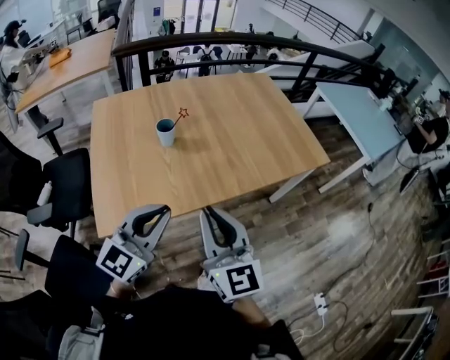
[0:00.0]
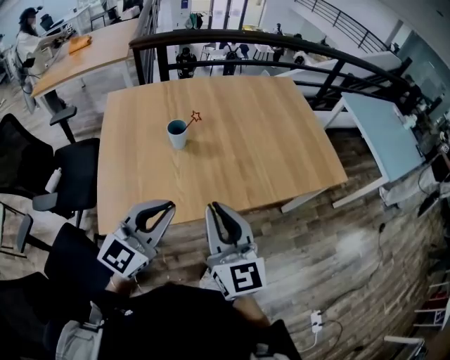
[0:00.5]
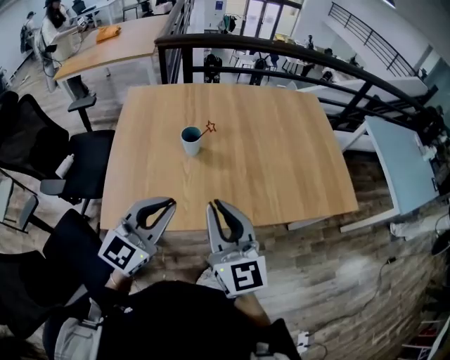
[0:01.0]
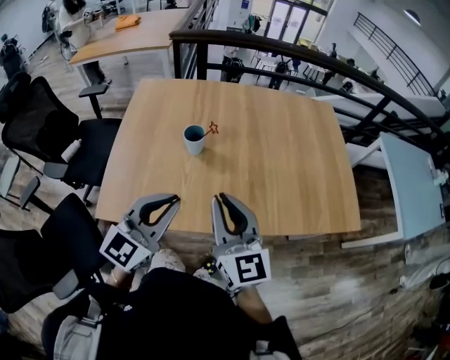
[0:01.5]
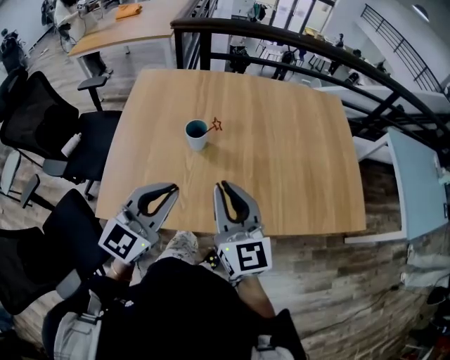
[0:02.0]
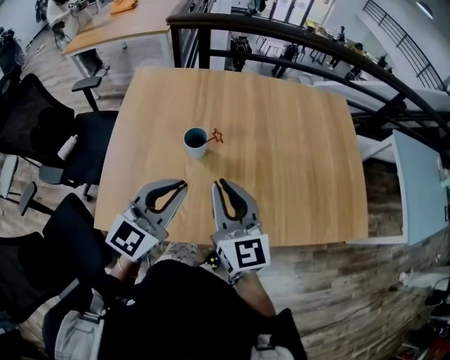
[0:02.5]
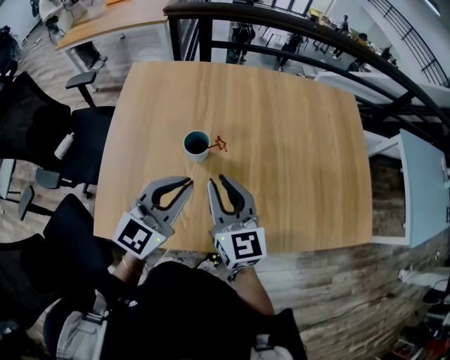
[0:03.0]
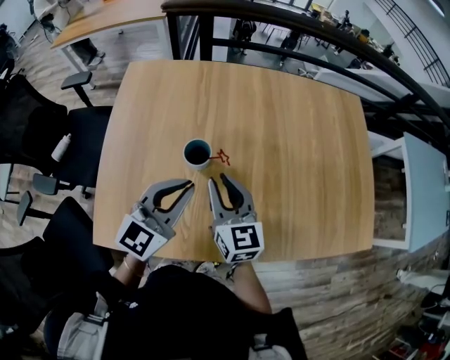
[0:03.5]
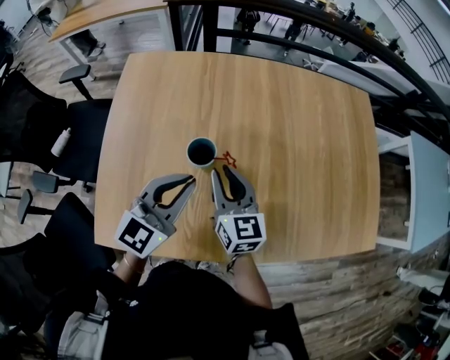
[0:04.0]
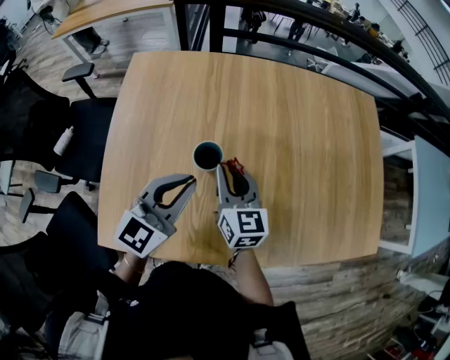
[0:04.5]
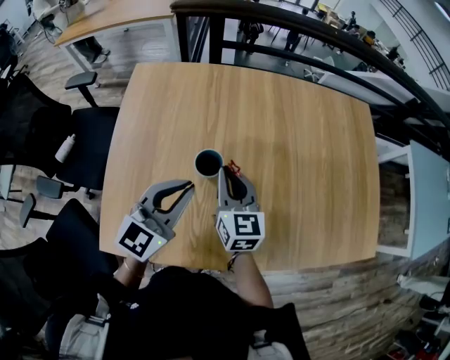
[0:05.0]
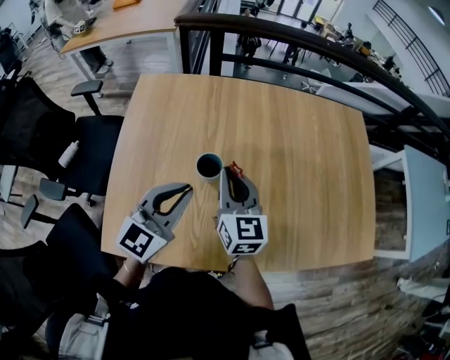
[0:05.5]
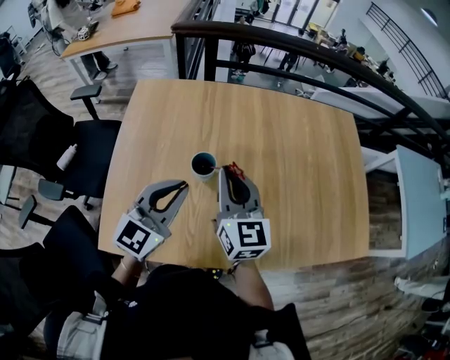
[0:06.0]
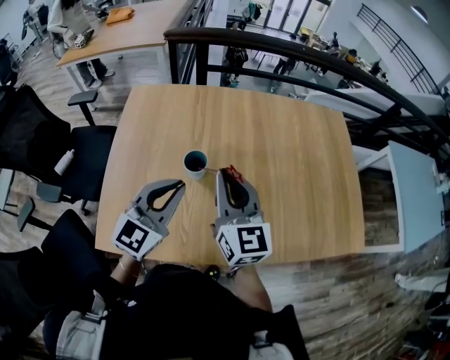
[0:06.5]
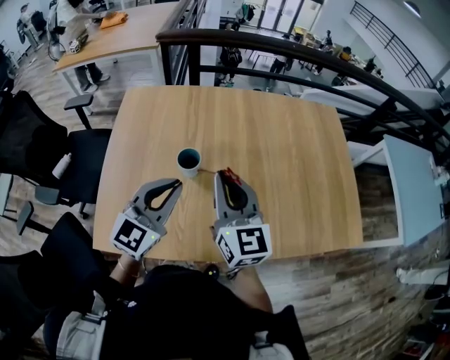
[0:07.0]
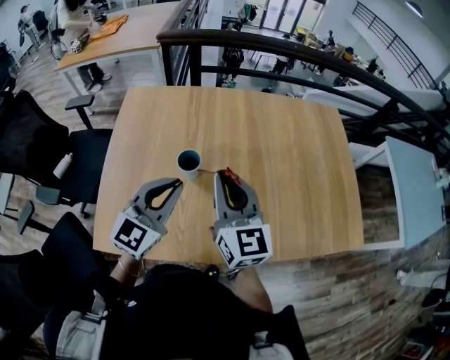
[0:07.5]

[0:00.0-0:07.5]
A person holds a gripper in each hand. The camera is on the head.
0:00.0 to 0:02.0: Both grippers move forward, roughly 20 cm. The left gripper turns by about 20 degrees. The right gripper changes its angle by roughly 20 degrees.
0:02.0 to 0:04.0: The left gripper shifts some 20 cm forward, while the right gripper moves forward, downward and to the left, some 25 cm.
0:04.0 to 0:05.5: The right gripper heads upward, covering some 5 cm.
0:05.5 to 0:07.5: The right gripper moves upward, backward and to the right, about 15 cm, while the left gripper ends up some 5 cm from where it was.

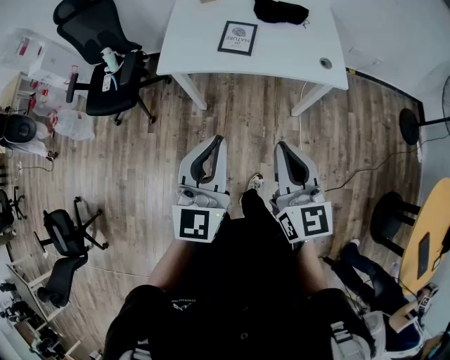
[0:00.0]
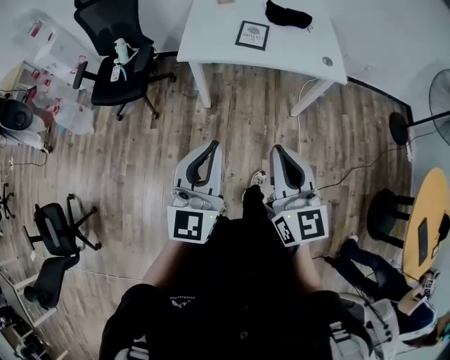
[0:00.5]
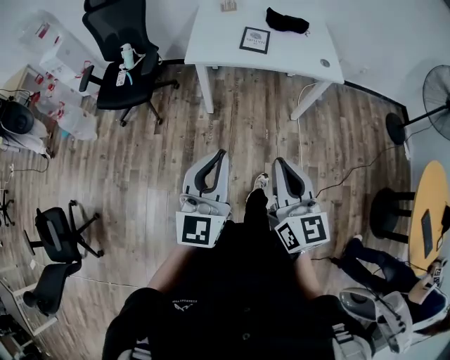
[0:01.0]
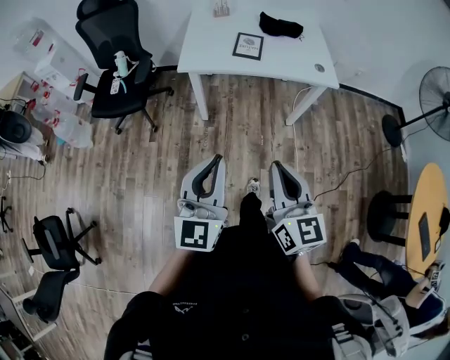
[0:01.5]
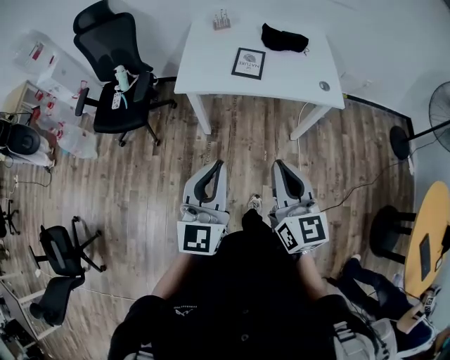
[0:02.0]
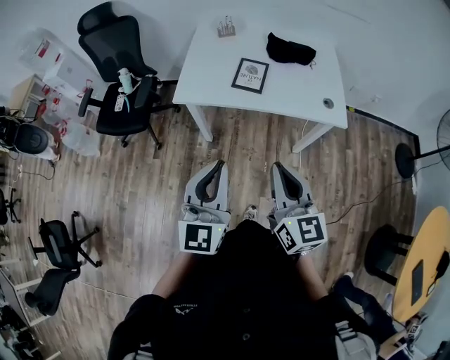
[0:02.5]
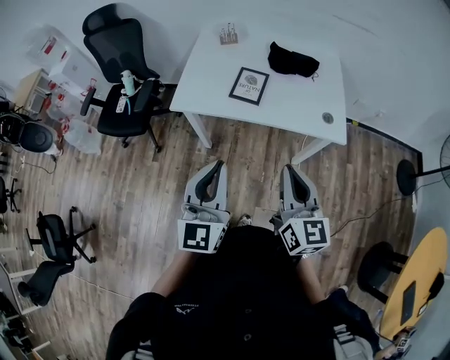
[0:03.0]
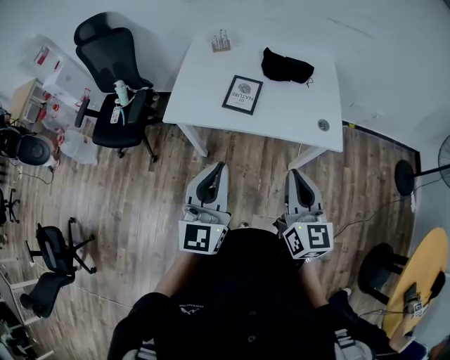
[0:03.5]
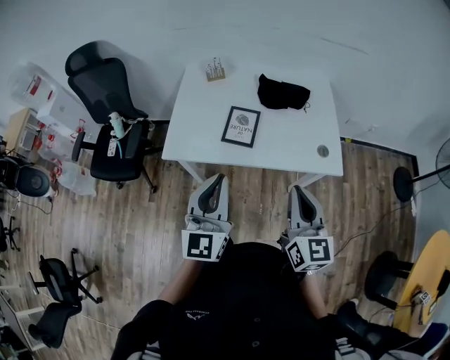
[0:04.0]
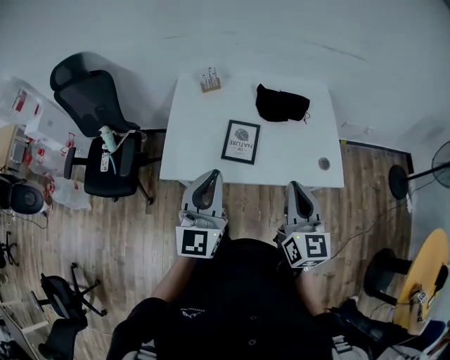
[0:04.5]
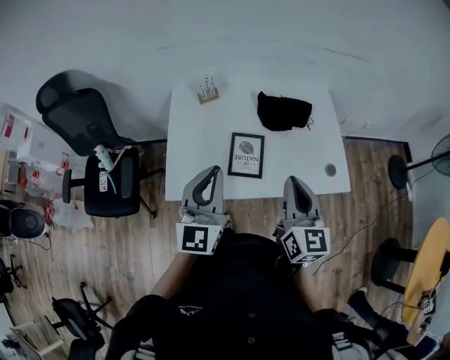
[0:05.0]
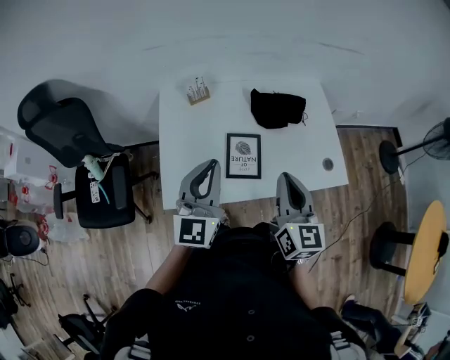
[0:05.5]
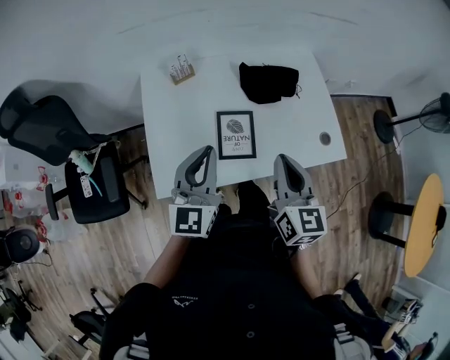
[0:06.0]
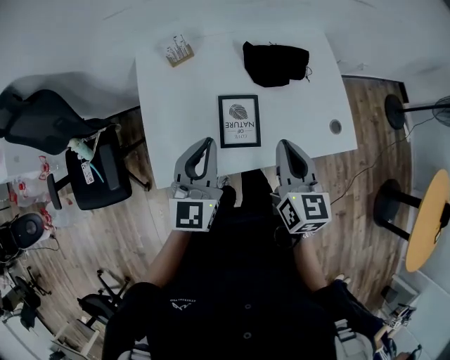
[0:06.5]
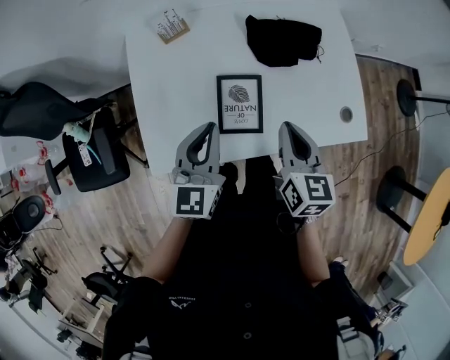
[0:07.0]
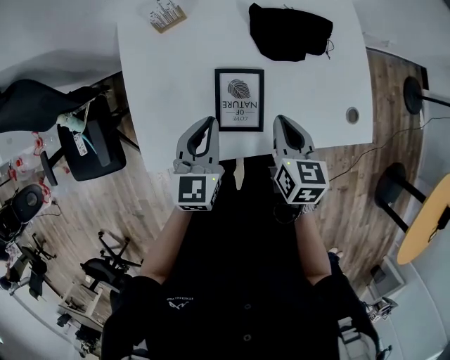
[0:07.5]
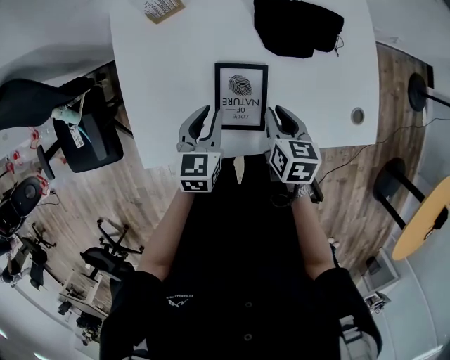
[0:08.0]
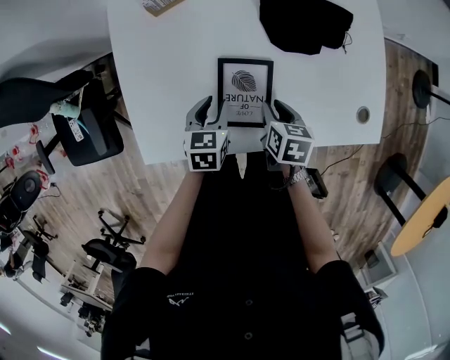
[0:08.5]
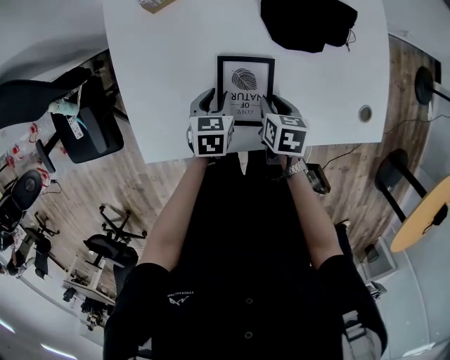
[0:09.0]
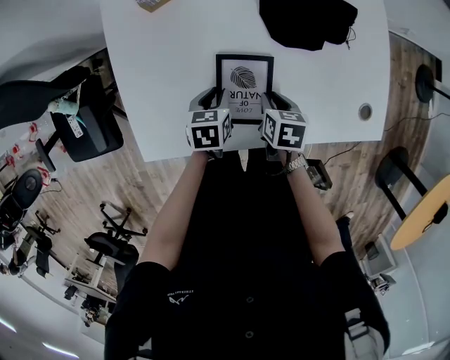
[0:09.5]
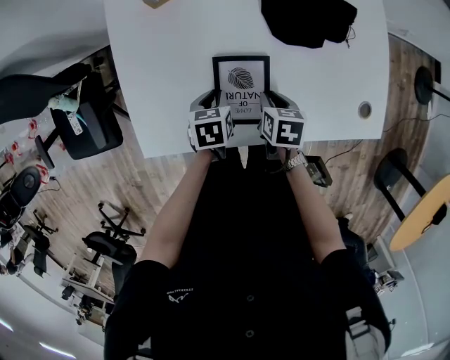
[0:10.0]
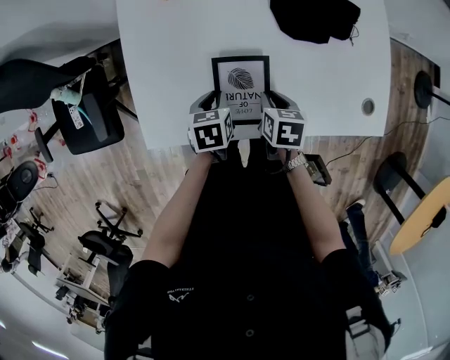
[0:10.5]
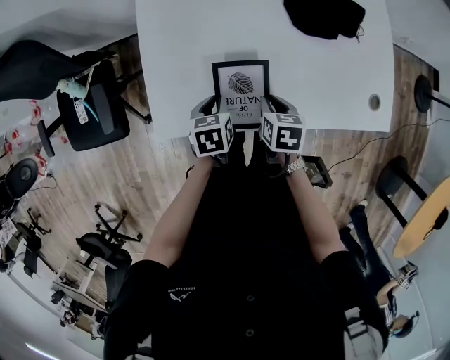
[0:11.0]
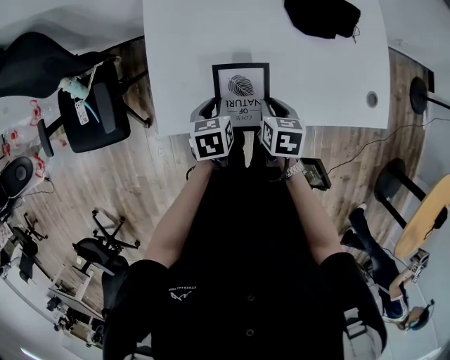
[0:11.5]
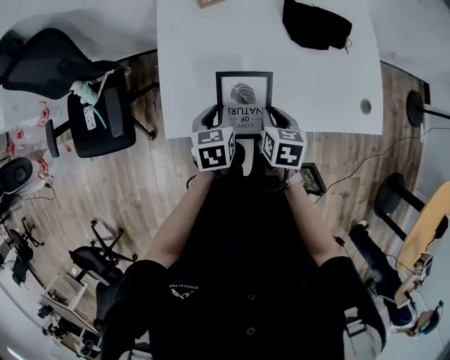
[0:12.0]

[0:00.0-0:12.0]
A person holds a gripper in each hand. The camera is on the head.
0:00.0 to 0:02.0: The grippers both shift to the left by approximately 10 cm. The right gripper goes backward and returns, approximately 25 cm each way. Meanwhile the left gripper moves approximately 25 cm backward and comes back.
0:02.0 to 0:04.0: The right gripper is displaced forward and to the right by some 30 cm, while the left gripper shifts approximately 25 cm forward.
0:04.0 to 0:06.0: The two grippers go roughly 30 cm forward and to the left.
0:06.0 to 0:08.0: The left gripper shifts roughly 25 cm downward, and tips its fingers downward by some 40 degrees. The right gripper travels downward and forward by some 30 cm, and tilts its fingers approximately 30 degrees downward.
0:08.0 to 0:10.0: Both grippers travel together downward, roughly 10 cm. The left gripper turns by some 30 degrees.
0:10.0 to 0:12.0: Both grippers travel together upward, backward and to the left, roughly 15 cm.

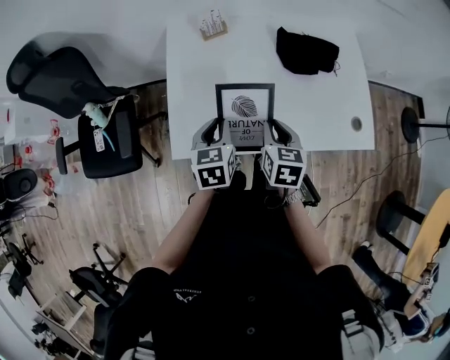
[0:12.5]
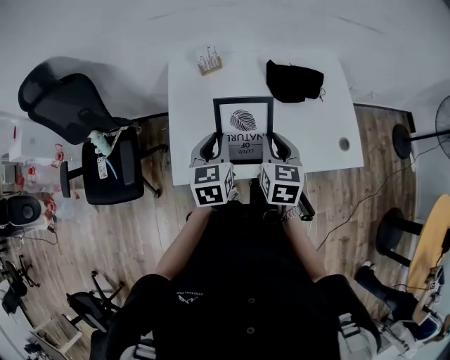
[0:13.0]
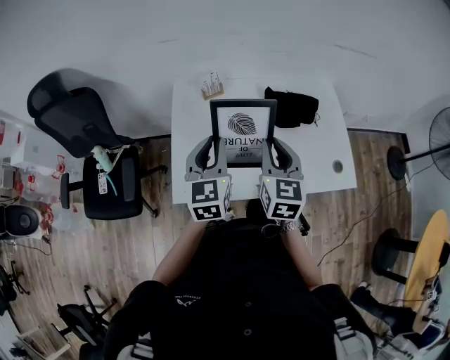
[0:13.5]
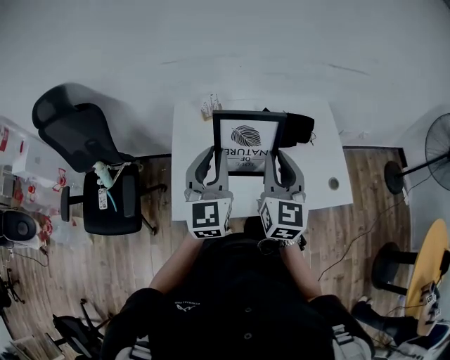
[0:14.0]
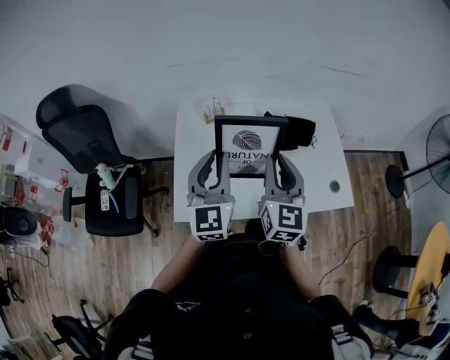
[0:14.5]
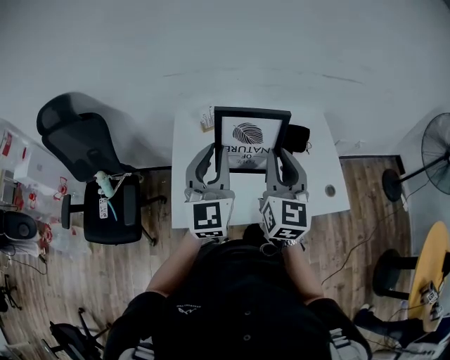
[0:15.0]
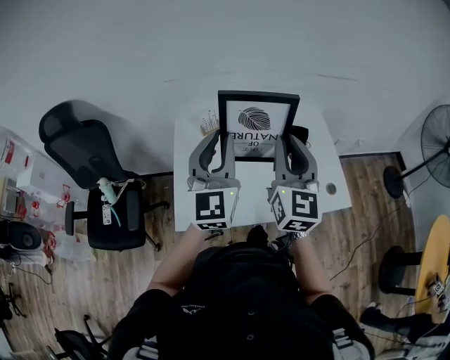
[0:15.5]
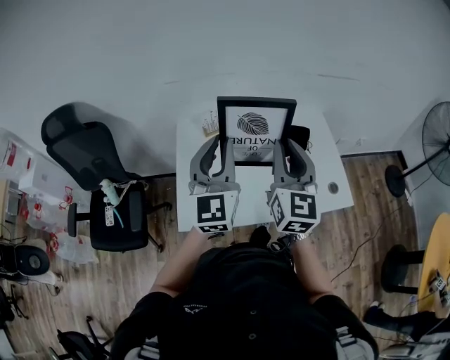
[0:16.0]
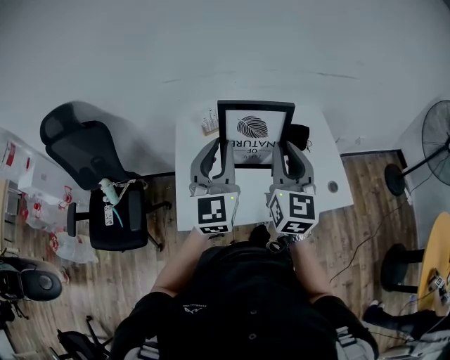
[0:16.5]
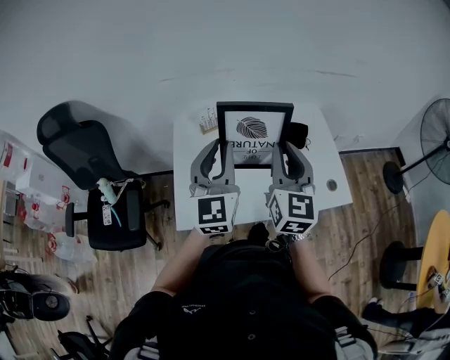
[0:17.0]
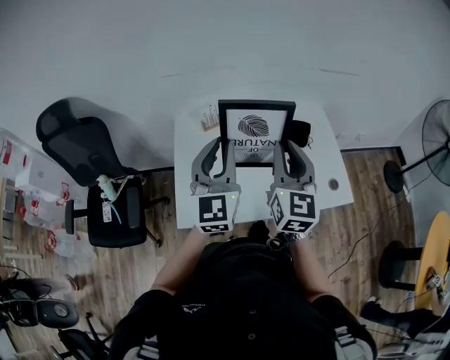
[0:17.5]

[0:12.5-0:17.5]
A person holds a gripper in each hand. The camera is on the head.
0:12.5 to 0:15.0: The two grippers go about 30 cm upward. The right gripper points its fingers roughly 40 degrees further upward. Meanwhile the left gripper points its fingers approximately 50 degrees further upward.
0:15.0 to 0:17.5: There are only small adjustments of the grippers.

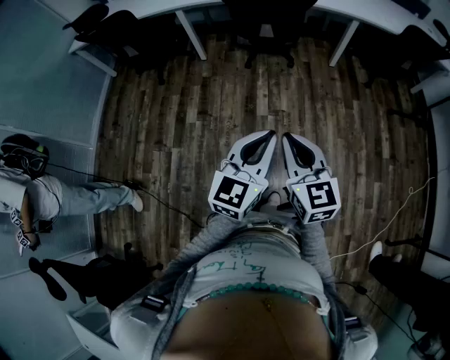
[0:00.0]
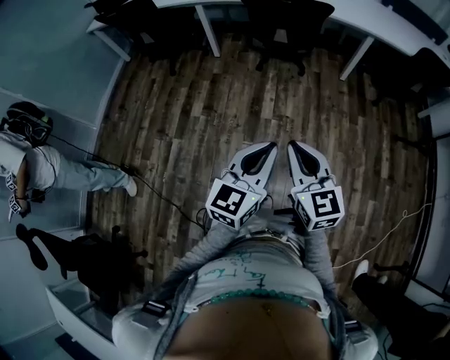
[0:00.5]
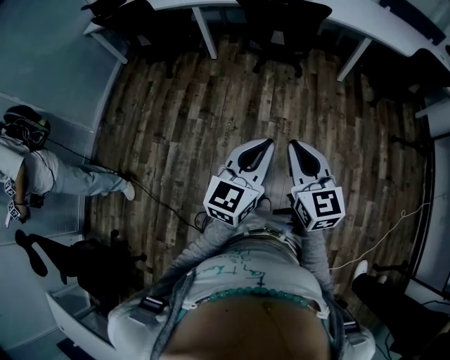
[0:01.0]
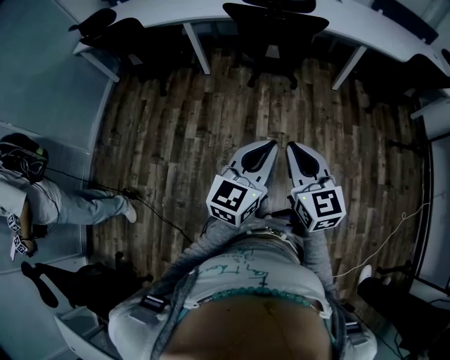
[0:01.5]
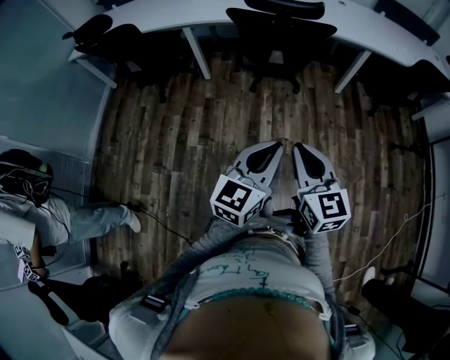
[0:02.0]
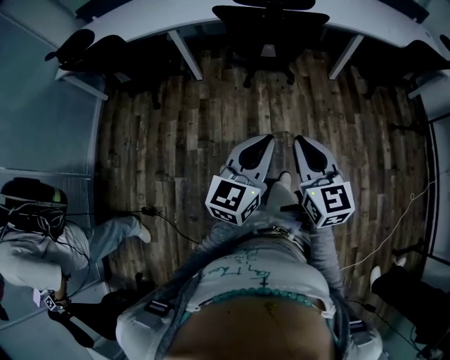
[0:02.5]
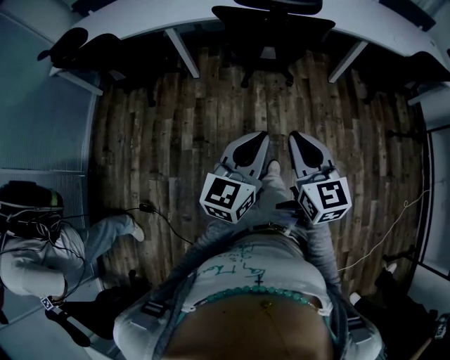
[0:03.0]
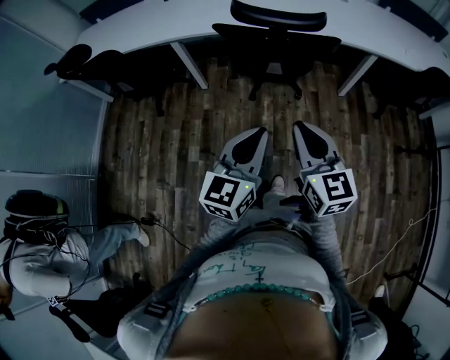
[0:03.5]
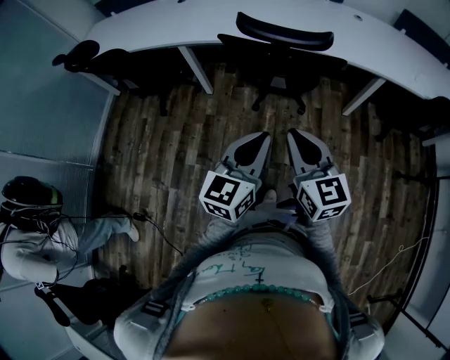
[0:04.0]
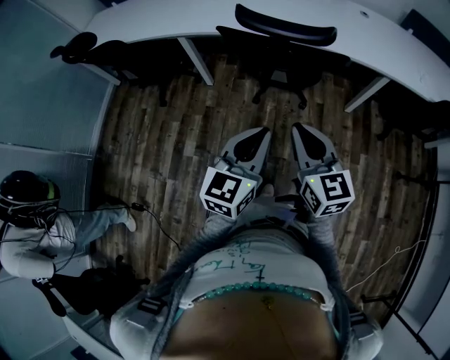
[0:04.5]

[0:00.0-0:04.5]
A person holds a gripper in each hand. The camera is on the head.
0:00.0 to 0:02.0: The two grippers go roughly 15 cm forward.
0:02.0 to 0:04.5: The grippers both shift forward by approximately 25 cm.
